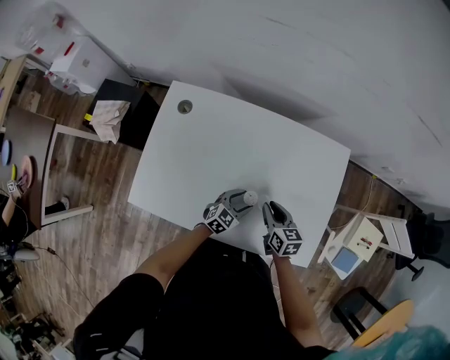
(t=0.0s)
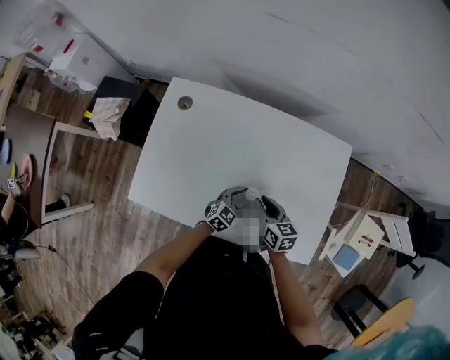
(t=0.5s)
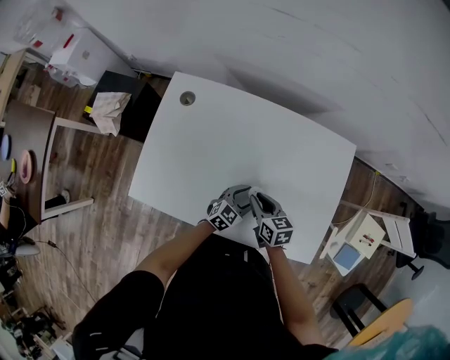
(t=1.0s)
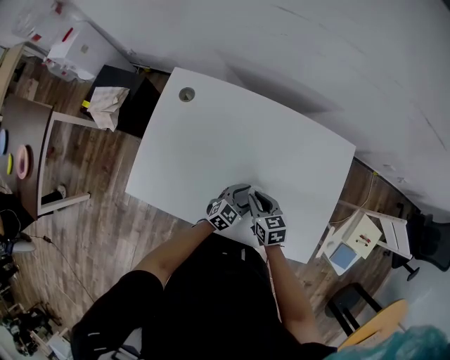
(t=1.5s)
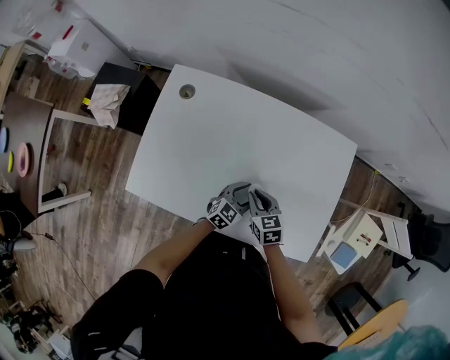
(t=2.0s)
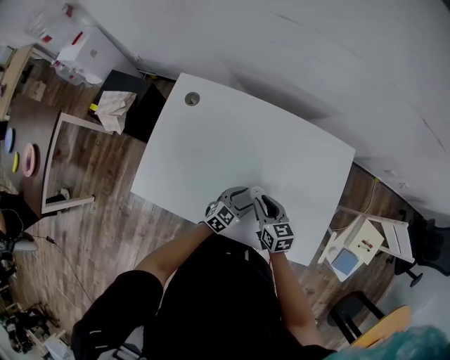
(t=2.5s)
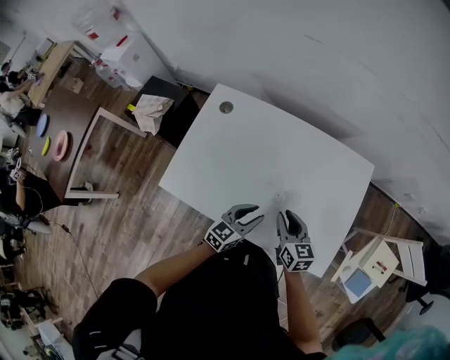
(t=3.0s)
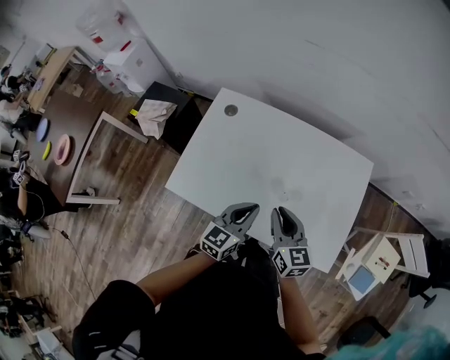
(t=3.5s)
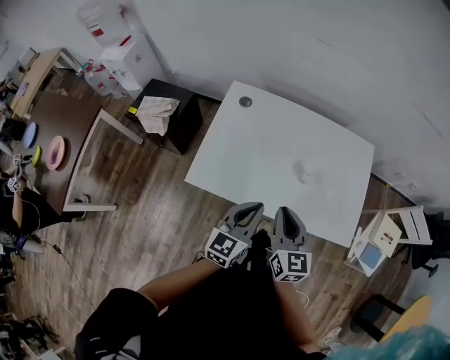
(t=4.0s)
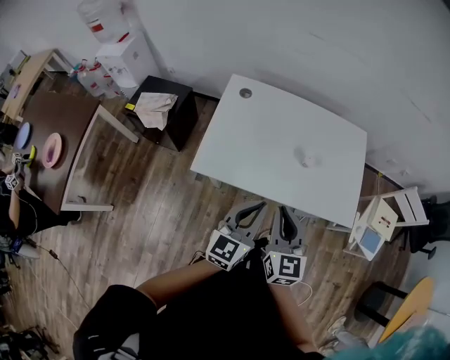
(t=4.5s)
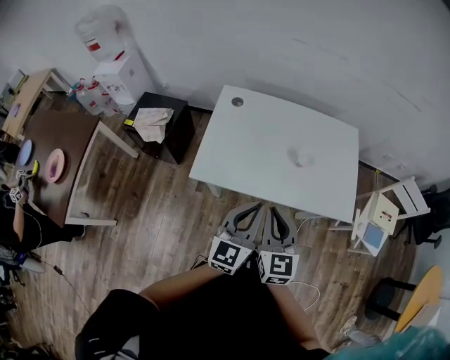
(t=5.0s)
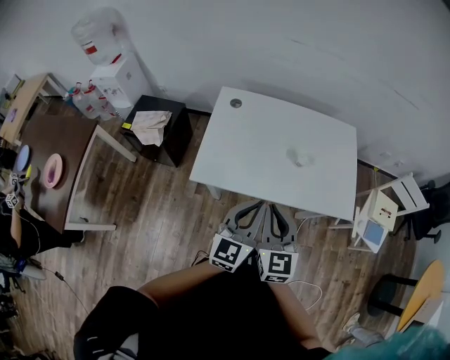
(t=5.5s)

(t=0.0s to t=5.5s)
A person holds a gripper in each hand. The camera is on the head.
t=0.0s - t=2.0s: The right gripper shifts approximately 5 cm to the left.
t=2.0s - t=3.5s: Both grippers travel together upward, some 20 cm. The left gripper rotates roughly 30 degrees, and closes its fingers. The right gripper rotates approximately 30 degrees.
t=3.5s - t=5.5s: The two grippers go about 30 cm backward, to the left and upward. The right gripper rotates approximately 30 degrees.

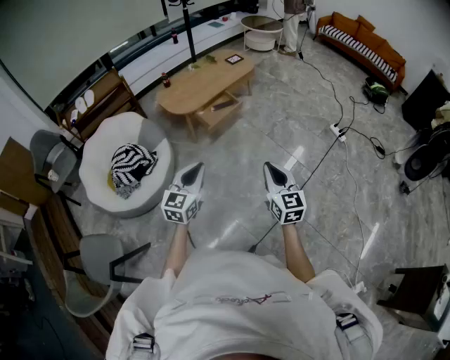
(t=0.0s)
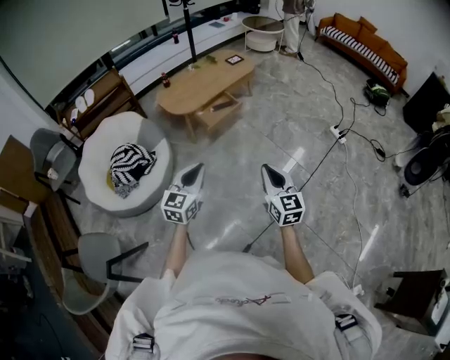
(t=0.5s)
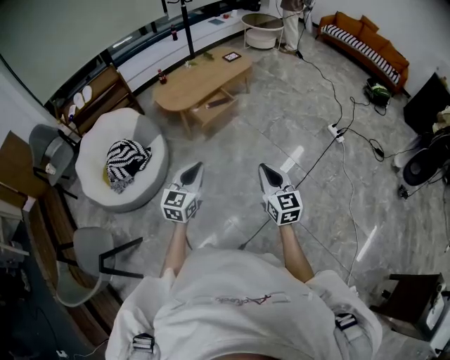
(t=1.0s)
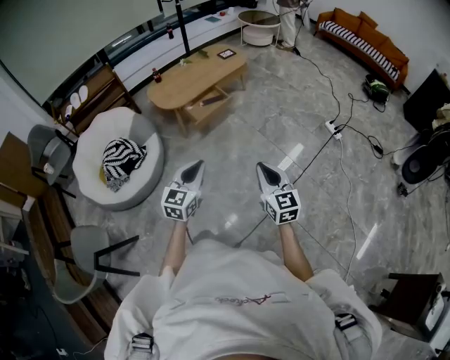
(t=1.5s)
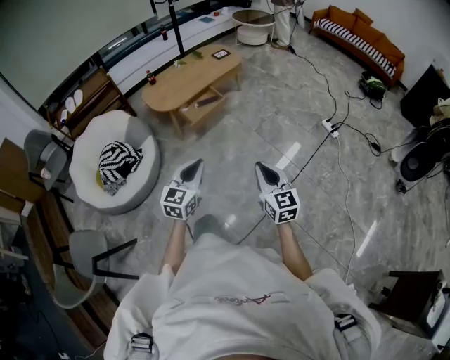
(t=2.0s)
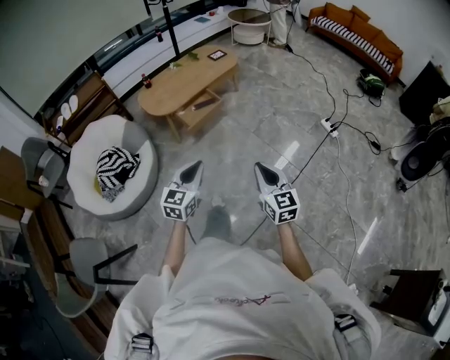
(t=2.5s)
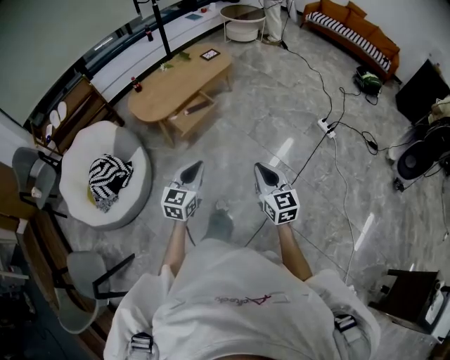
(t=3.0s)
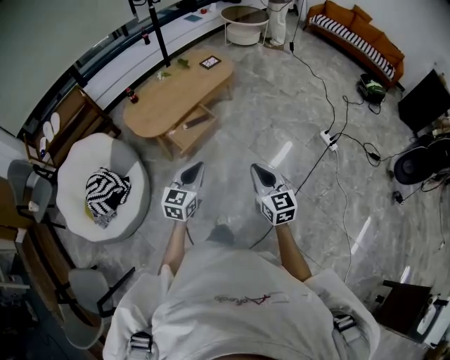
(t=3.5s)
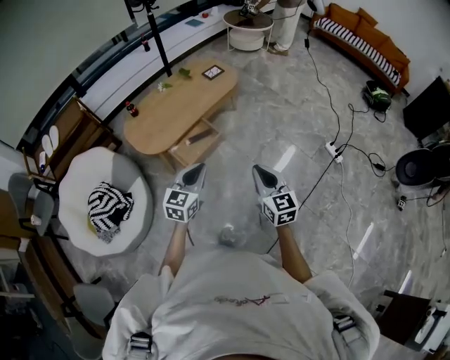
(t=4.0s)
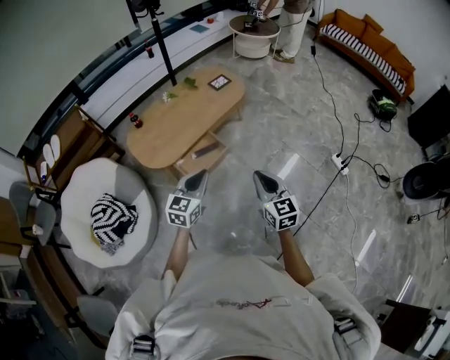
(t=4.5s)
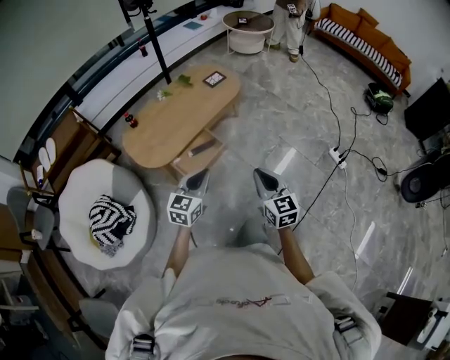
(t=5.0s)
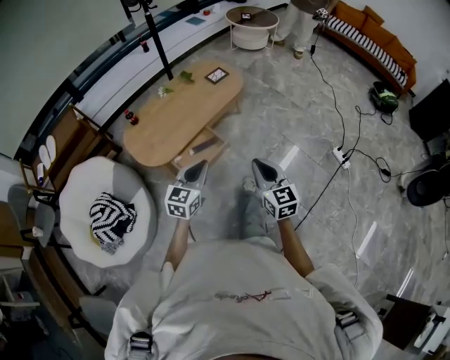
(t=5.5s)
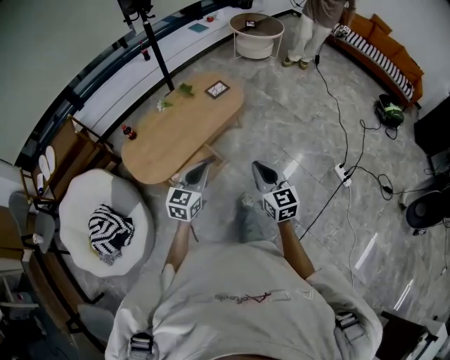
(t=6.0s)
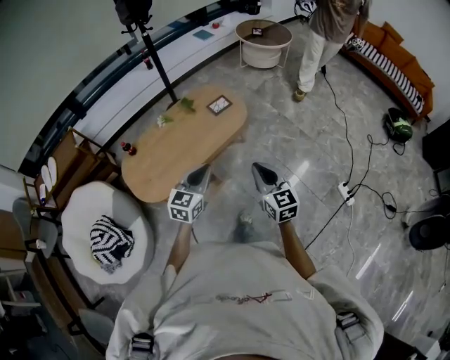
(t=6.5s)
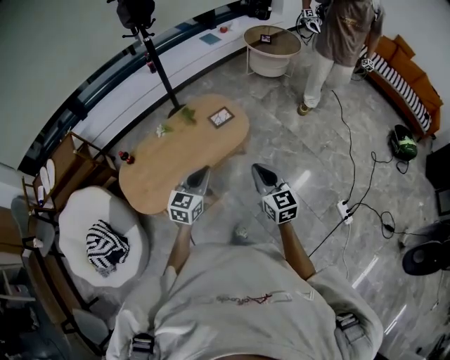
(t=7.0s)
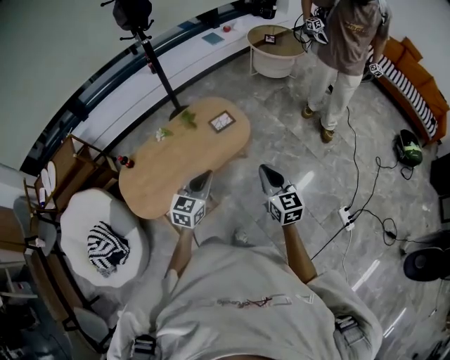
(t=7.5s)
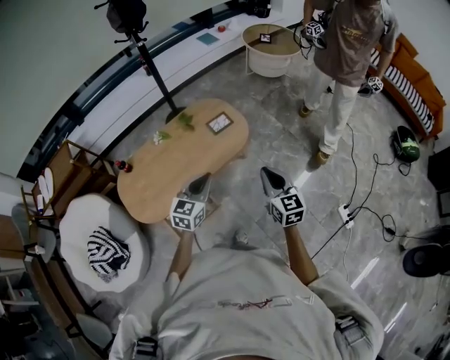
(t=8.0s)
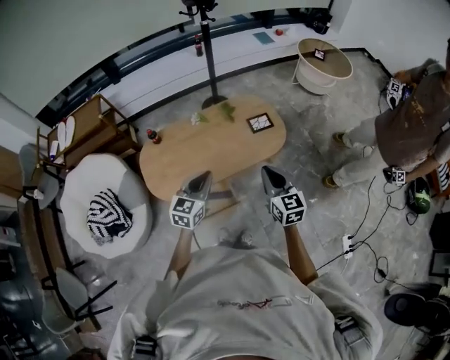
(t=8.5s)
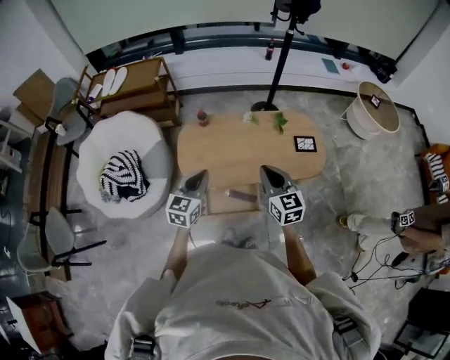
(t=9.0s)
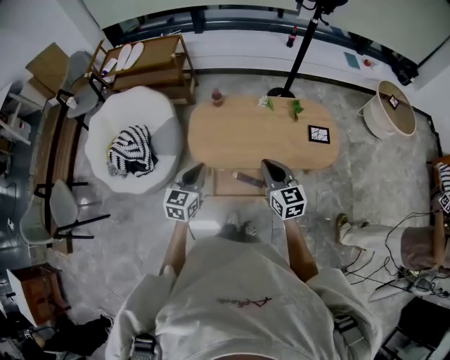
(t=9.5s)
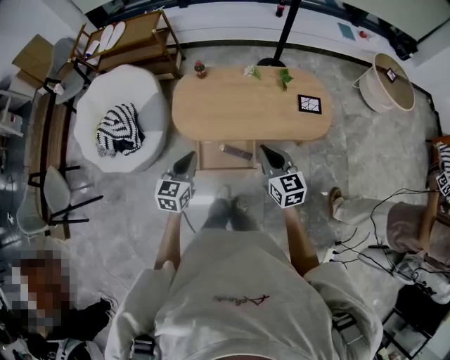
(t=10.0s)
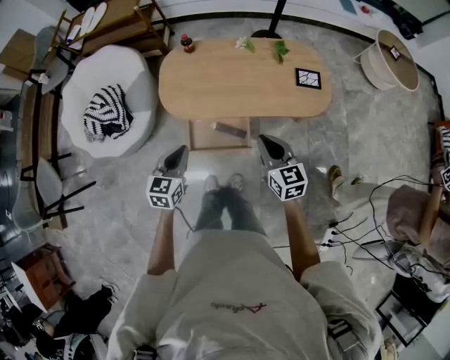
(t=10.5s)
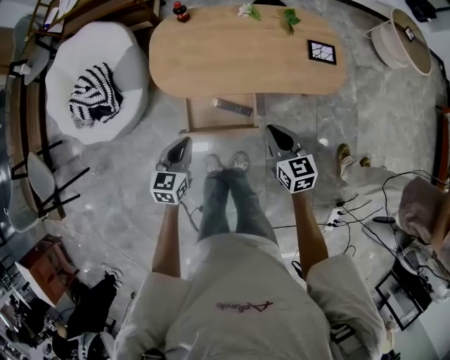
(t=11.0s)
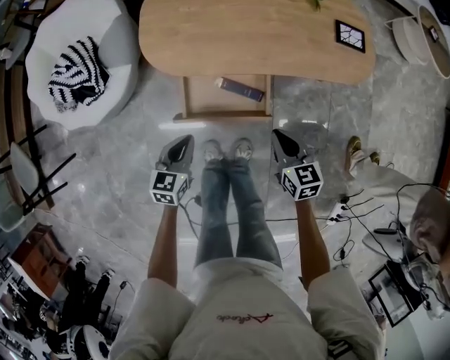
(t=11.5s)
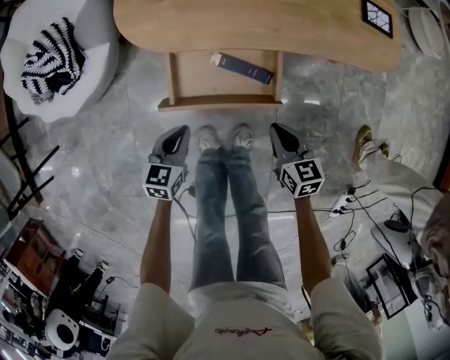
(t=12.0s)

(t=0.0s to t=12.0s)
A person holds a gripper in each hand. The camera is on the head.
t=0.0s - t=2.0s: Both grippers travel together to the right, roughly 15 cm.
t=2.0s - t=4.0s: Both grippers are carried forward, about 40 cm.
t=4.0s - t=6.0s: The grippers both shift forward by some 25 cm.
t=6.0s - t=8.0s: Both grippers travel together forward, approximately 30 cm.
t=8.0s - t=10.0s: The left gripper moves roughly 35 cm, and turns by about 40 degrees. Meanwhile the right gripper shifts by some 30 cm, and changes its angle by roughly 40 degrees.
t=10.0s - t=12.0s: Both grippers move downward, some 50 cm. The left gripper changes its angle by approximately 20 degrees, while the right gripper changes its angle by approximately 30 degrees.

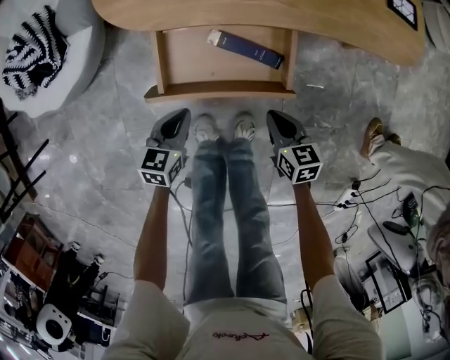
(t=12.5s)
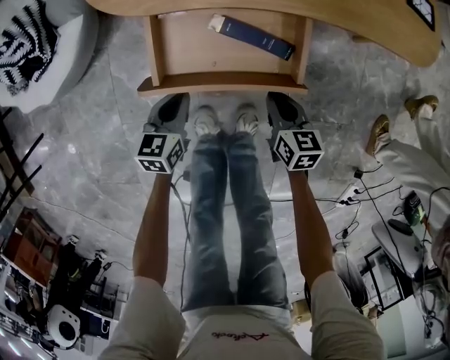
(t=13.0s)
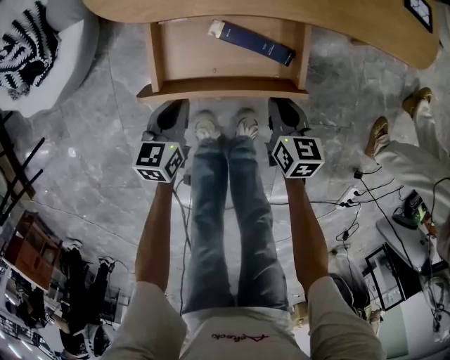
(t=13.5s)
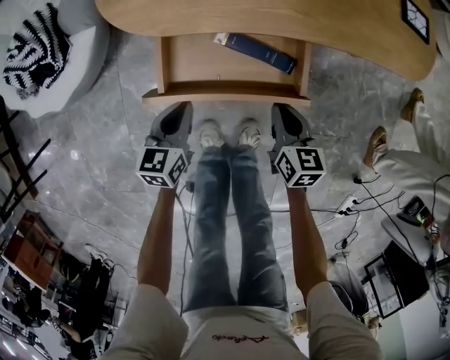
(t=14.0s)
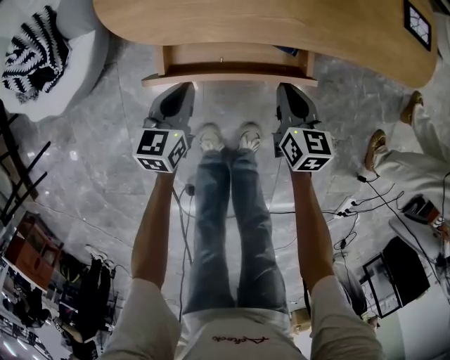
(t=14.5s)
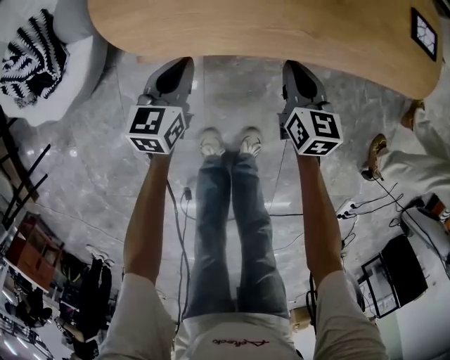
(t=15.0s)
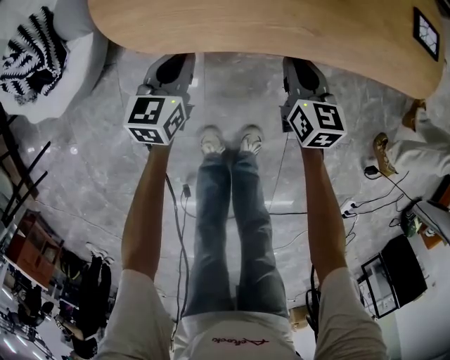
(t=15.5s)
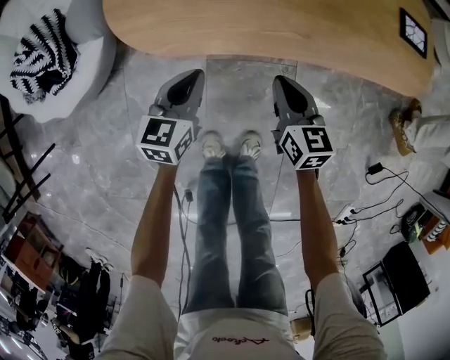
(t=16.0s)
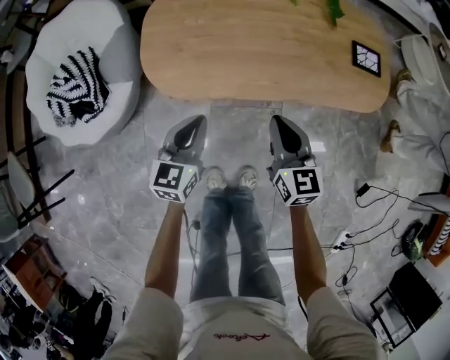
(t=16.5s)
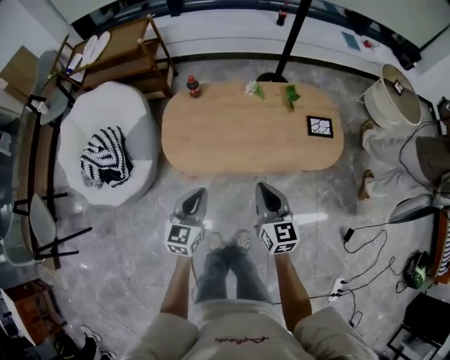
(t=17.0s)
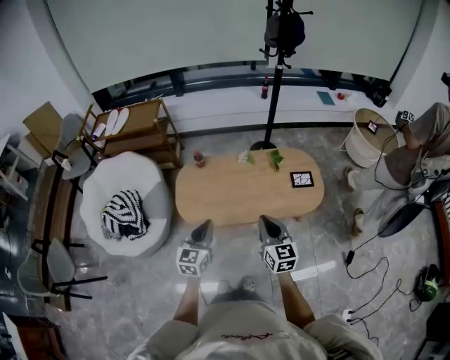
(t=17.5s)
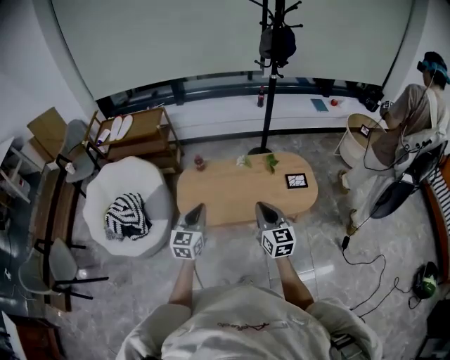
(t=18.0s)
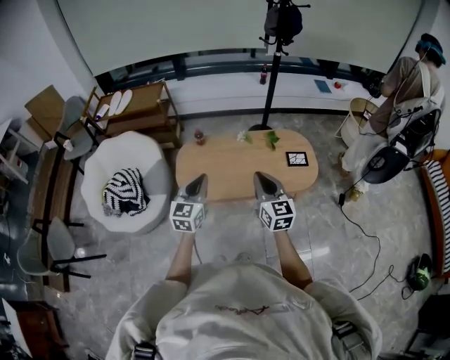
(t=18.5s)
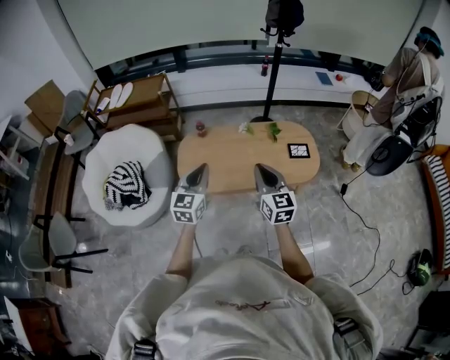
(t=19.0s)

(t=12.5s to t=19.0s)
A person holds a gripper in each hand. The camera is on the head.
t=12.5s - t=14.5s: Both grippers move forward, about 15 cm.
t=14.5s - t=17.0s: The grippers both shift upward by about 40 cm. The left gripper turns by some 20 degrees. Meanwhile the right gripper swivels roughly 30 degrees.
t=17.0s - t=19.0s: Both grippers move upward, roughly 25 cm.

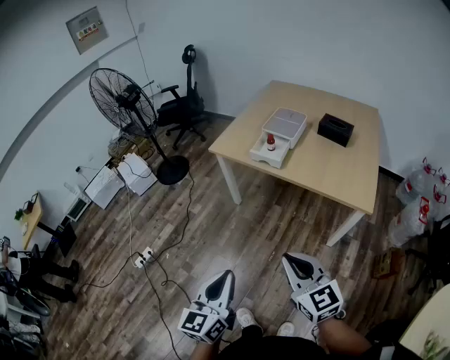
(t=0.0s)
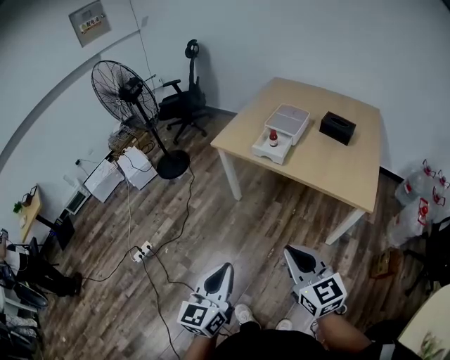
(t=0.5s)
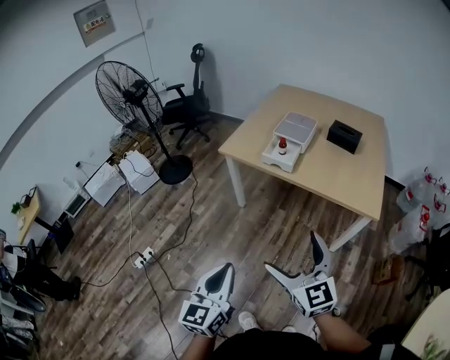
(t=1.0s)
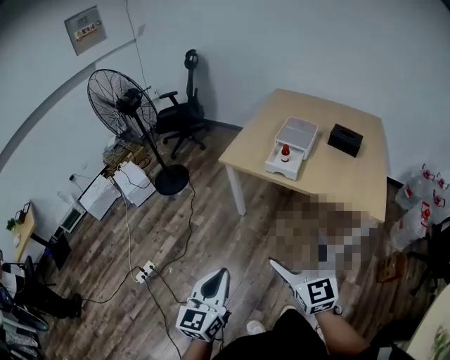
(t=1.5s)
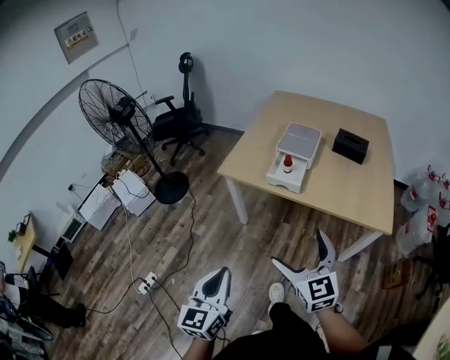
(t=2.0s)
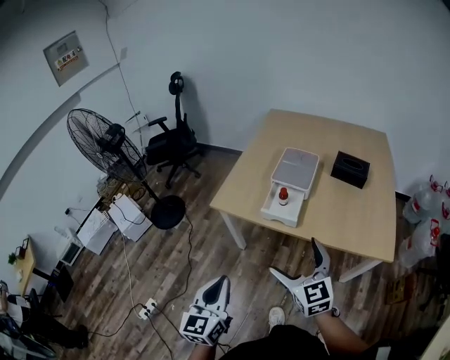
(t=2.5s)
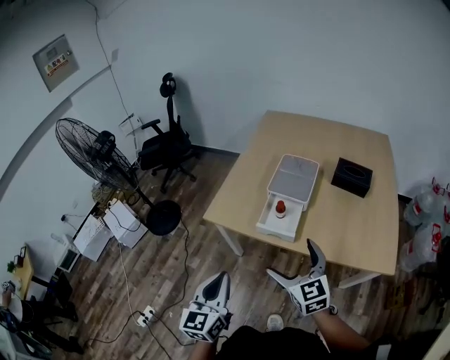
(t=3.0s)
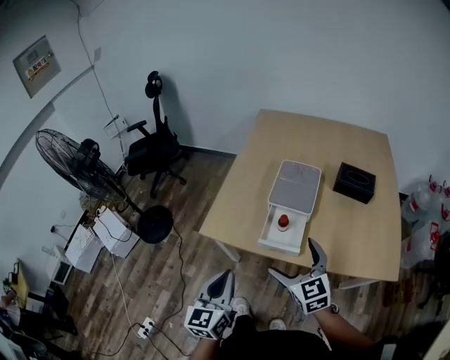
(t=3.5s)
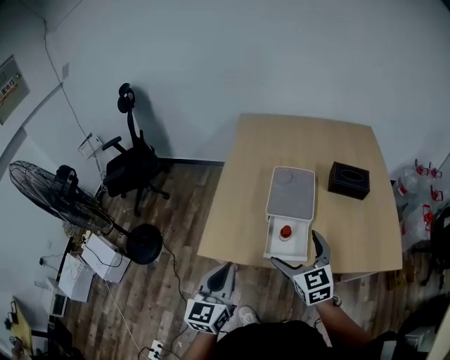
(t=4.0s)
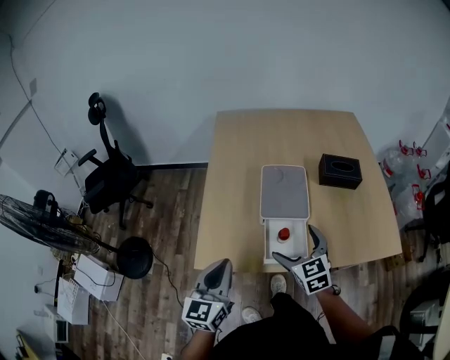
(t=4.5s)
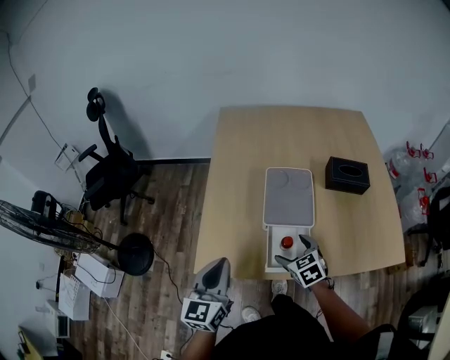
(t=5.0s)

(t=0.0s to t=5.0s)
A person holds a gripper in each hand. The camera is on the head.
t=0.0s - t=2.5s: The two grippers go about 30 cm forward. The right gripper opens up.
t=2.5s - t=5.0s: The left gripper travels forward by approximately 40 cm, and changes its angle by approximately 20 degrees. The right gripper heads forward and downward, covering approximately 40 cm, and tips its fingers downward by some 30 degrees.
